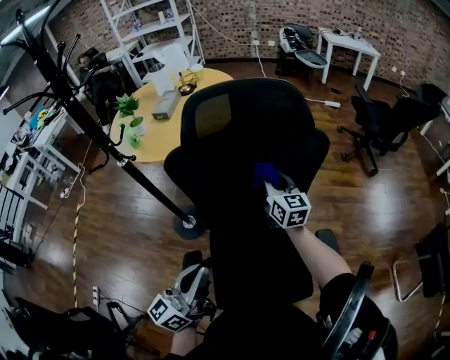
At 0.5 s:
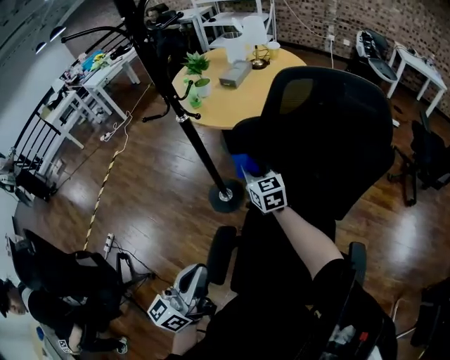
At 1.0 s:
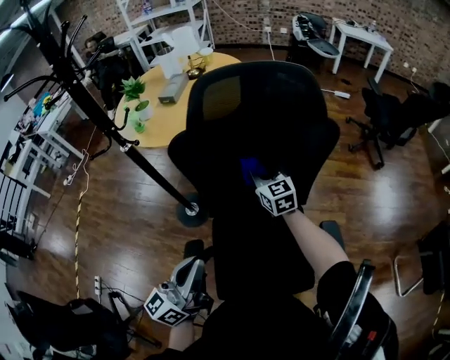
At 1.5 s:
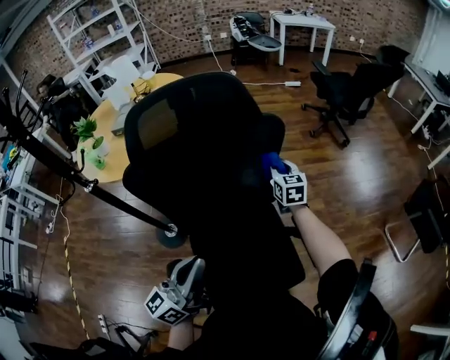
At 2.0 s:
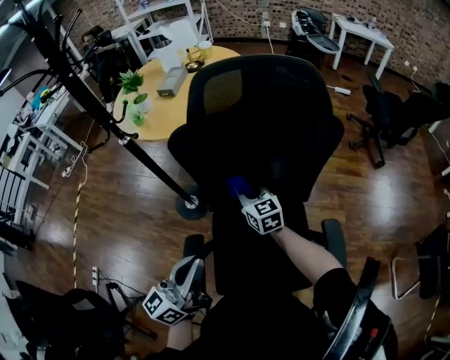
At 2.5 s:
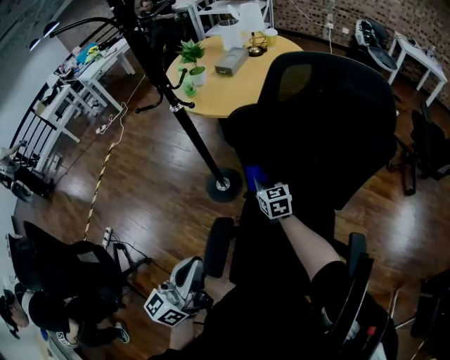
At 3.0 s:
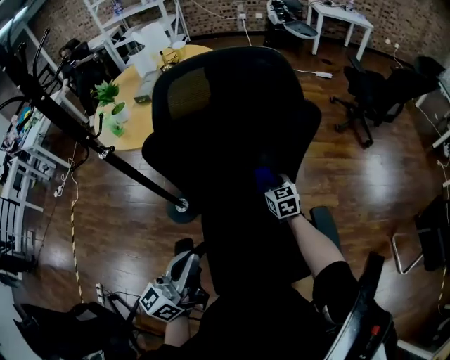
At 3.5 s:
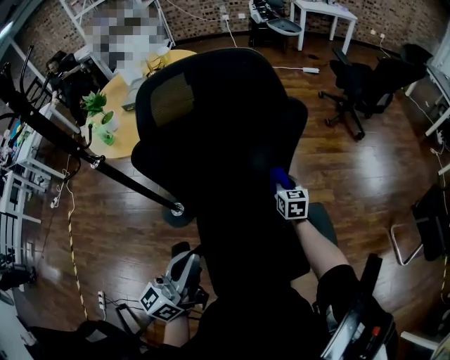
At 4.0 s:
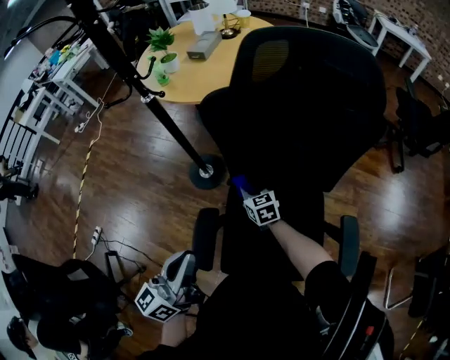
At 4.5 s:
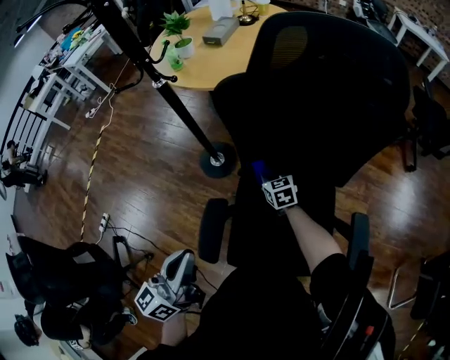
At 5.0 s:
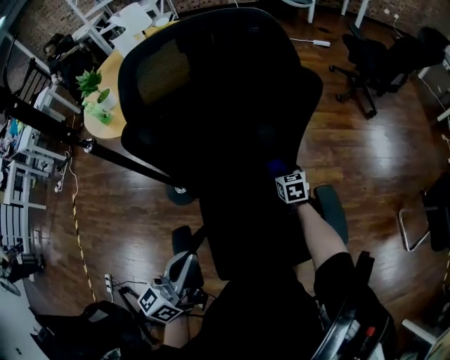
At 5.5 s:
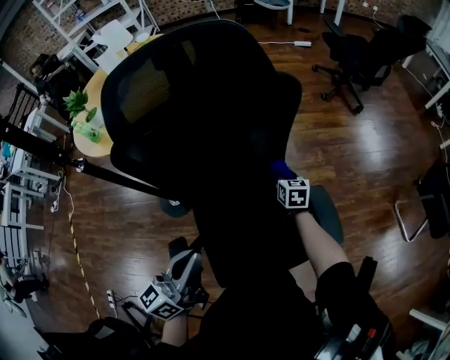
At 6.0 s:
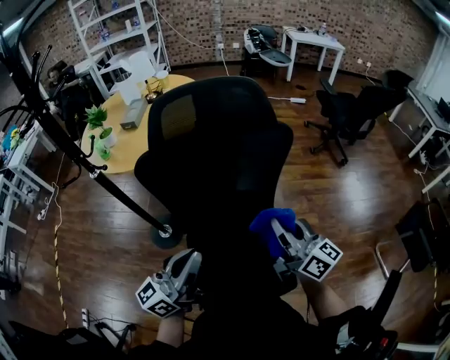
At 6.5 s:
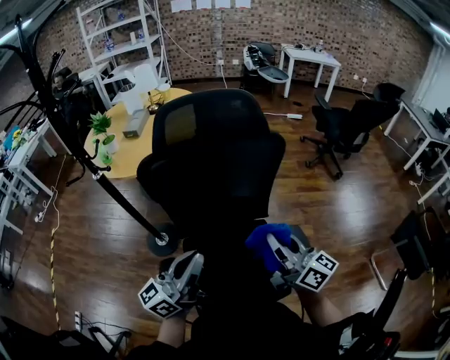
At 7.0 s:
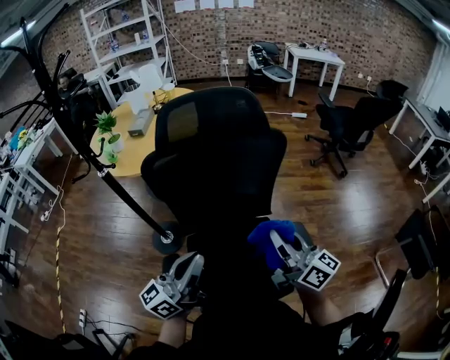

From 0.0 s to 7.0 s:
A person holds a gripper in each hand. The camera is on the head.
From 0.0 s to 2.0 s: The right gripper turns by some 20 degrees.
From 2.0 s to 3.5 s: The right gripper moves roughly 25 cm, and swivels about 30 degrees.
From 3.5 s to 5.0 s: The right gripper goes approximately 10 cm downward.
From 5.0 s to 7.0 s: The right gripper moves upward and backward, some 40 cm, and tips its fingers upward by about 60 degrees. The left gripper is displaced upward and to the right by approximately 10 cm, and rotates some 20 degrees.

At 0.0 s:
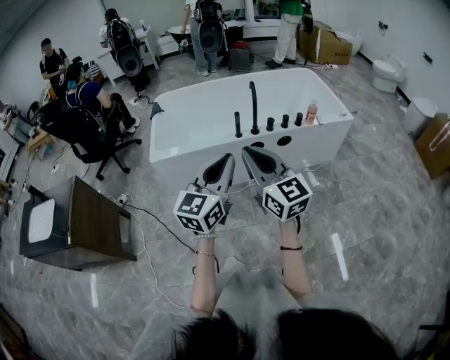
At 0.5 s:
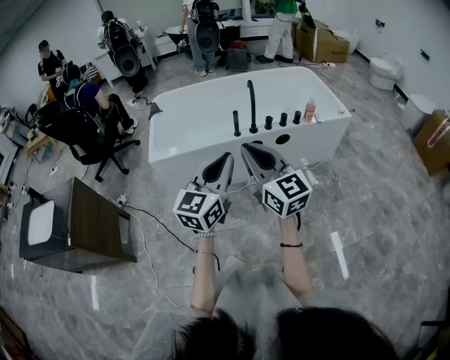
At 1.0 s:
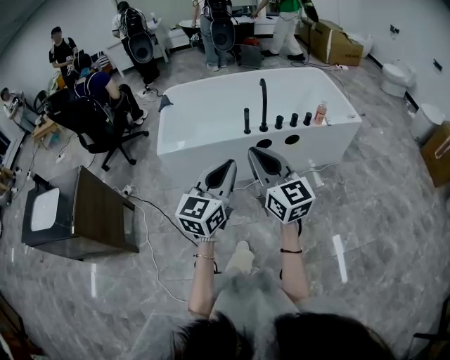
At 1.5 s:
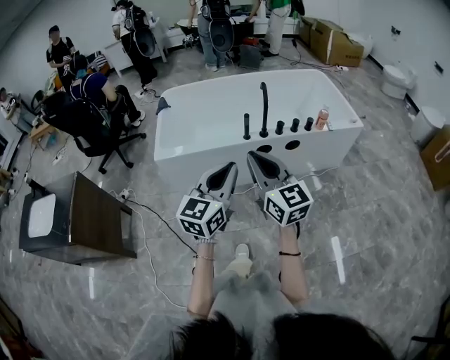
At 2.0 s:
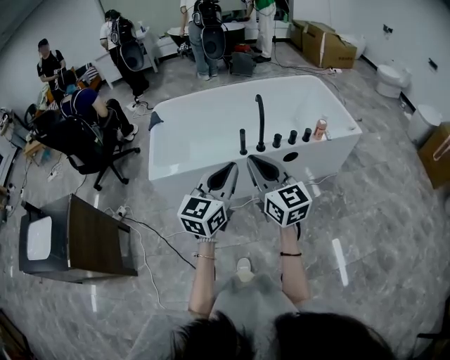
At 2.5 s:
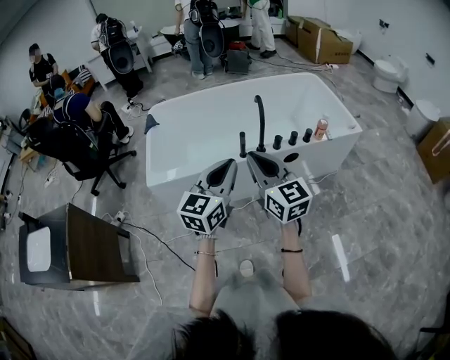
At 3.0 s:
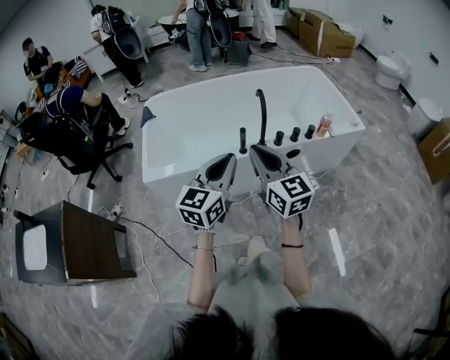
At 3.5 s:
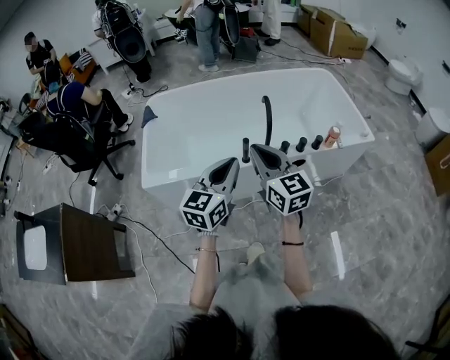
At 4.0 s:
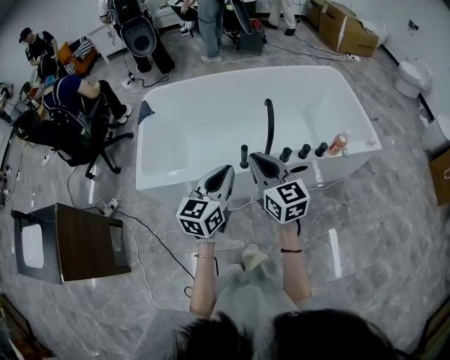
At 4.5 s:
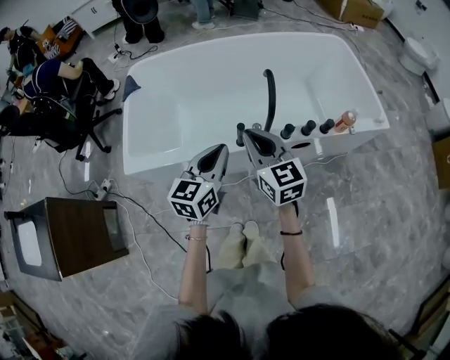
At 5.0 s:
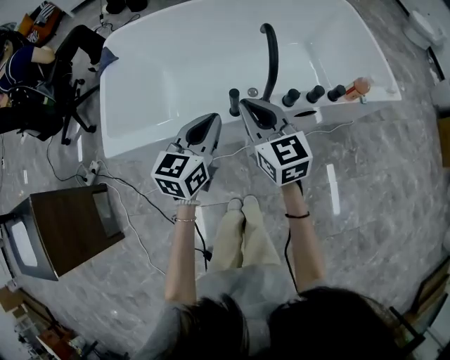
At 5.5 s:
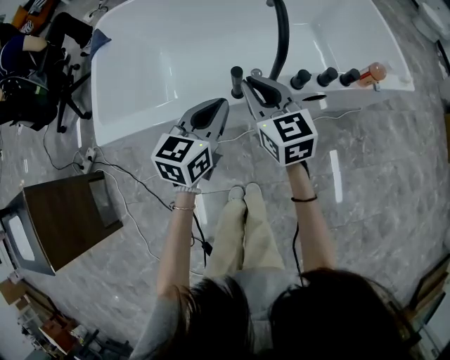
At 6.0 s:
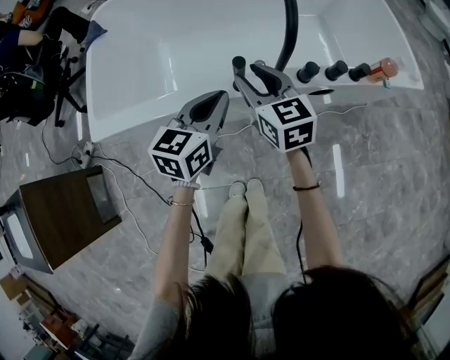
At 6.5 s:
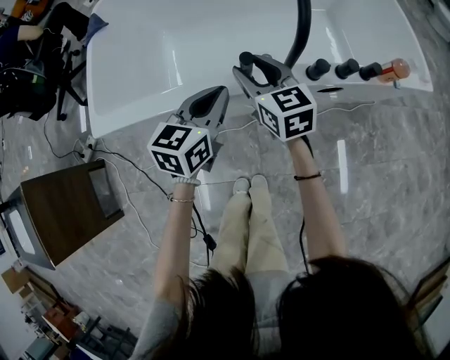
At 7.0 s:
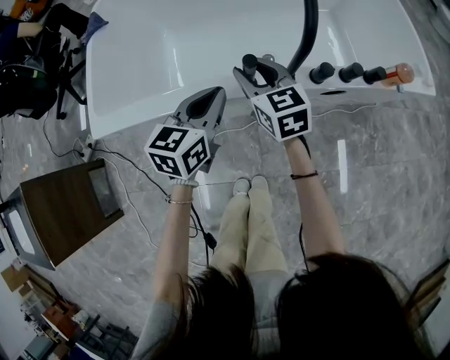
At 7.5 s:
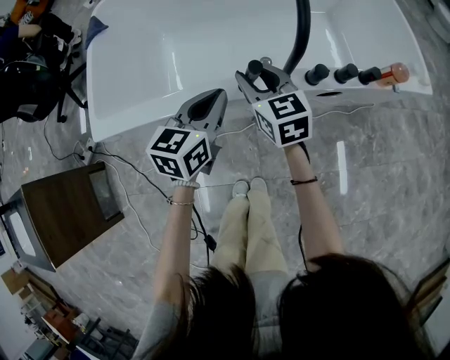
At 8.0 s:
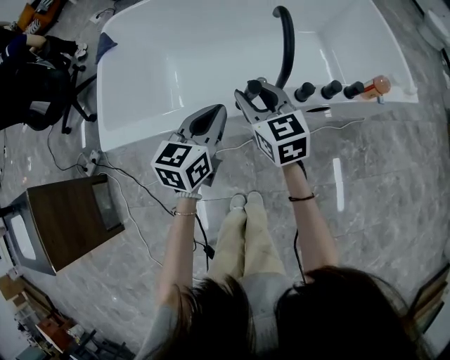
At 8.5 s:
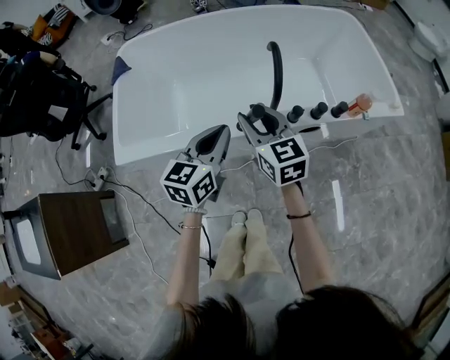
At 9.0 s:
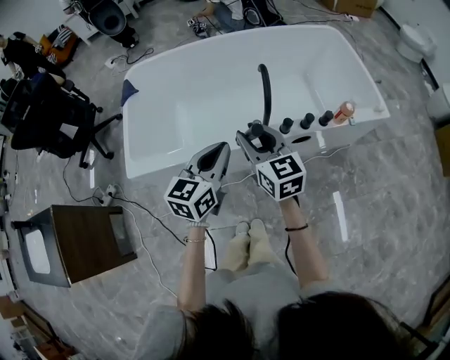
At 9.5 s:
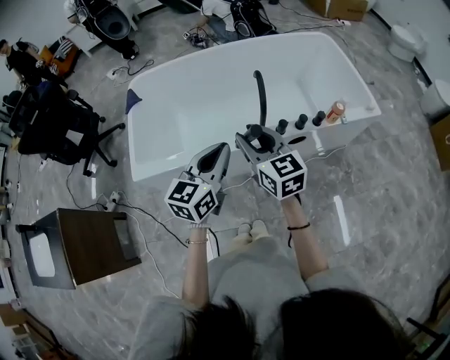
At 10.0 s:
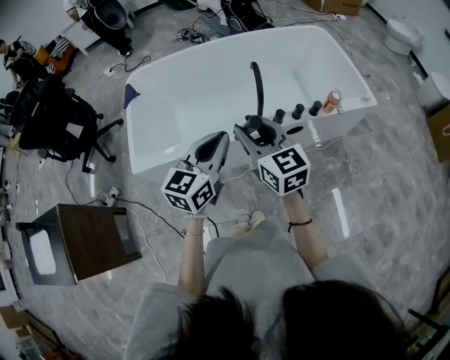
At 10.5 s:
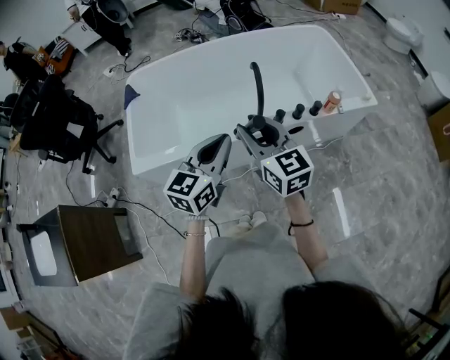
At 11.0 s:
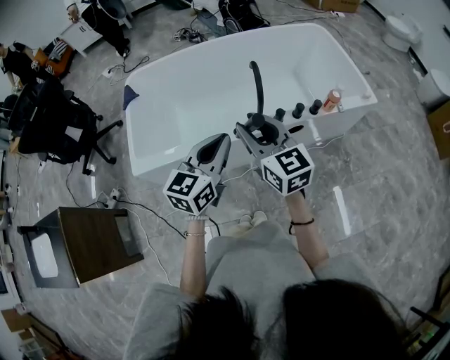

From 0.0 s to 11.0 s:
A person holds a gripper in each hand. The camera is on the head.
From 0.0 s to 2.0 s: The grippers both shift forward by approximately 15 cm.
From 2.0 s to 3.5 s: Both grippers move forward, about 15 cm.
From 3.5 s to 5.5 s: The two grippers go approximately 30 cm downward and forward.
From 5.5 s to 7.5 s: The right gripper travels downward by about 10 cm, and opens its fingers. The left gripper is displaced downward by about 5 cm.
From 7.5 s to 9.0 s: The right gripper goes approximately 25 cm upward and backward. The left gripper travels upward by some 20 cm.
From 9.0 s to 11.0 s: The grippers both shift upward and backward by some 10 cm.

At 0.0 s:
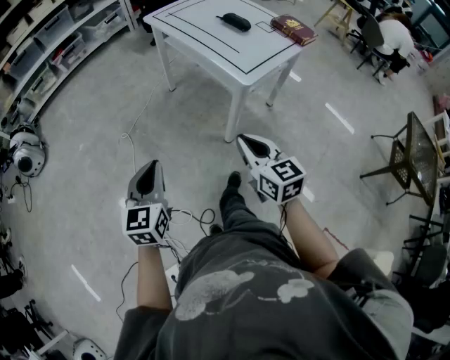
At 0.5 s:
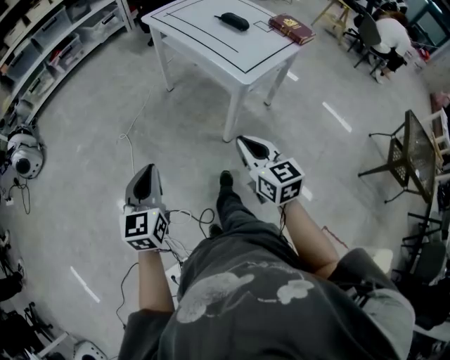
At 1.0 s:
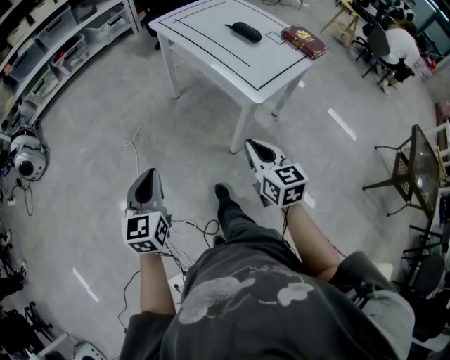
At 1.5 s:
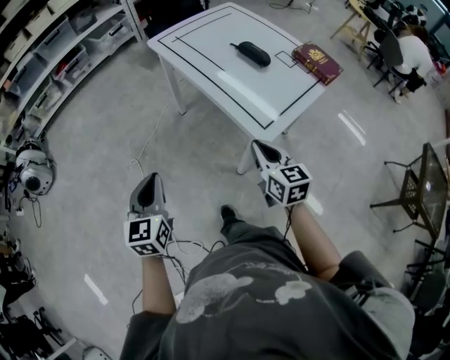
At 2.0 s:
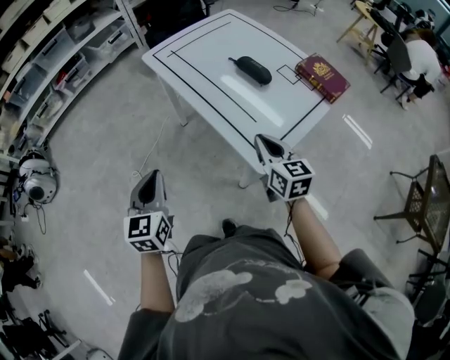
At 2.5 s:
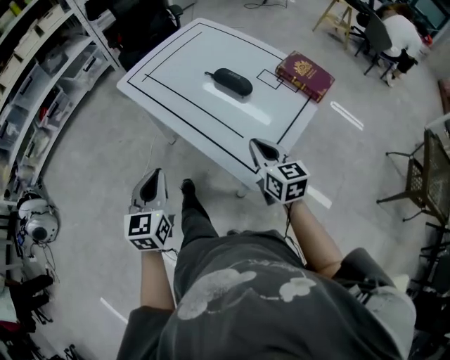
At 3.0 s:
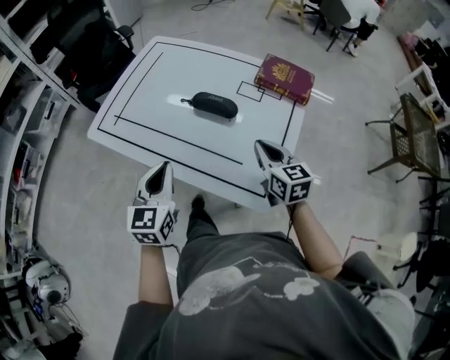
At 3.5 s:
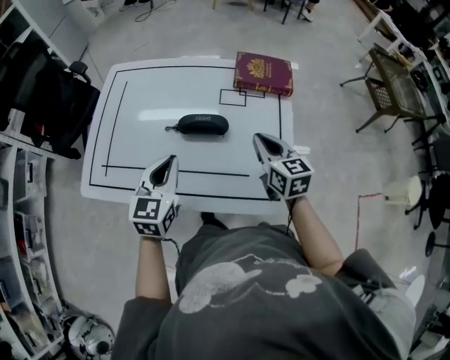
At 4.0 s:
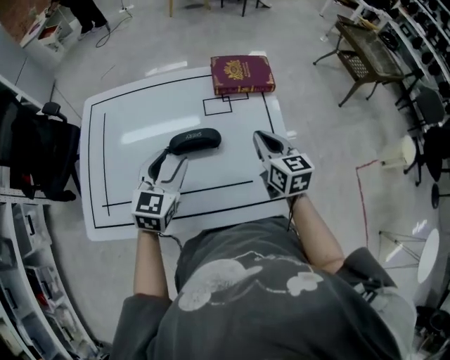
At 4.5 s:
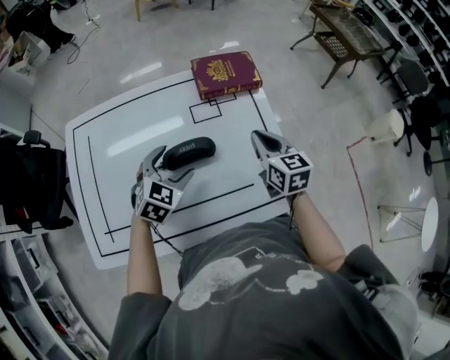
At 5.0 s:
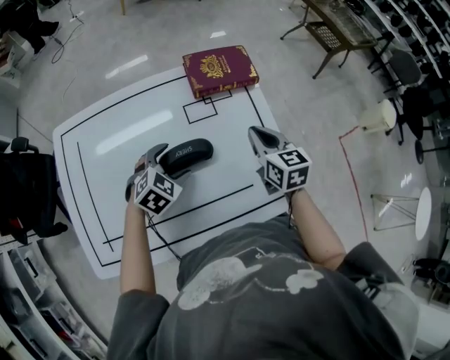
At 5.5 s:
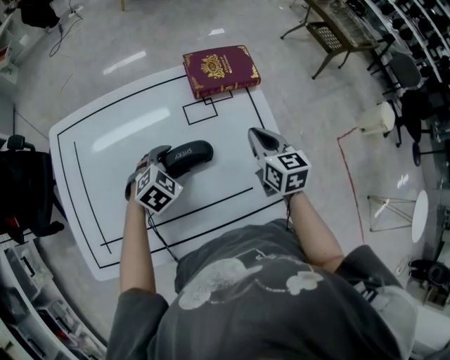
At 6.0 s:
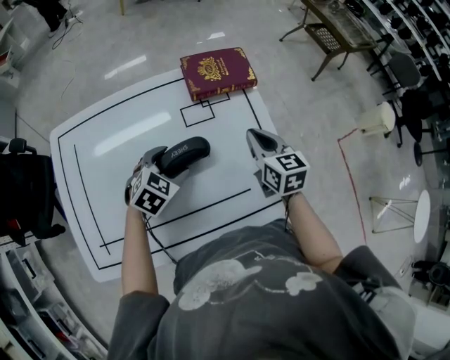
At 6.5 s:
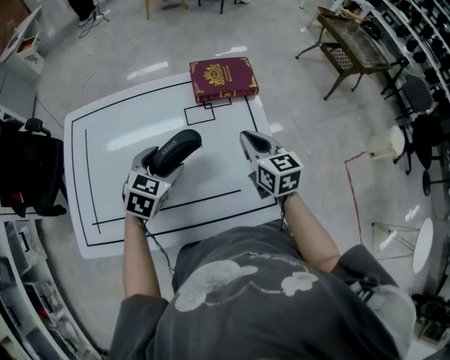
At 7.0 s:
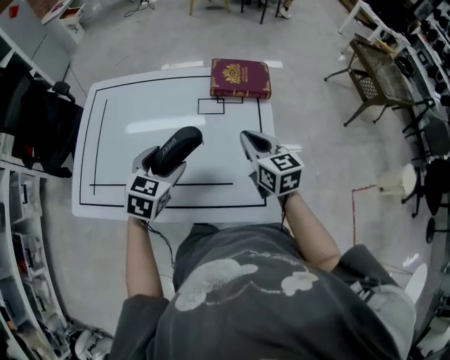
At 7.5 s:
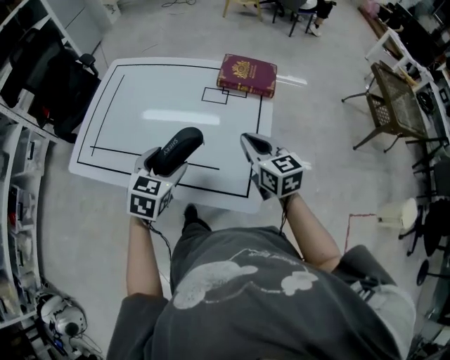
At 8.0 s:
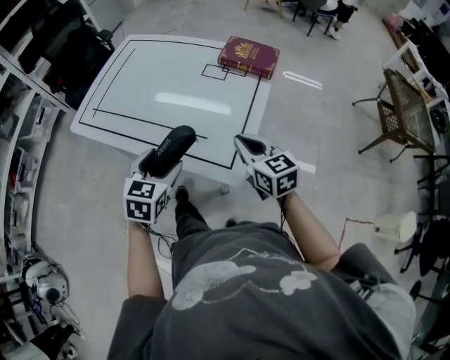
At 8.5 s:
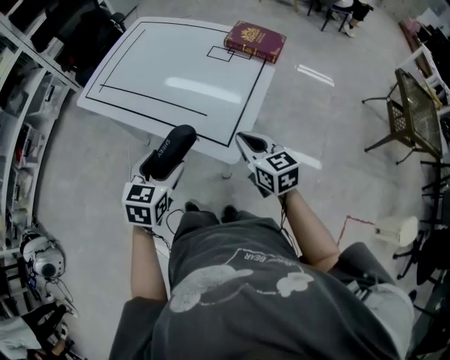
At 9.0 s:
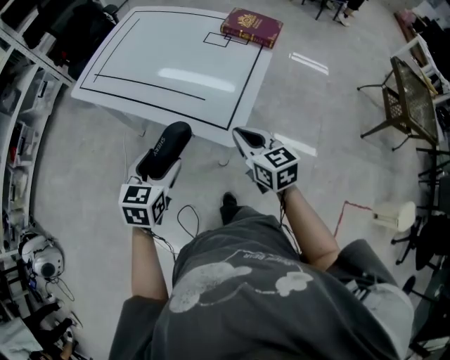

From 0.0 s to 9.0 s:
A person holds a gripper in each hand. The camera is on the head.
From 0.0 s to 2.0 s: Both grippers move forward, approximately 35 cm.
From 2.0 s to 4.5 s: The left gripper shifts by approximately 50 cm, rotates about 100 degrees, and opens, while the right gripper ends up roughly 25 cm from where it was, and rotates some 60 degrees.
From 4.5 s to 7.0 s: The left gripper ends up roughly 10 cm from where it was, and rotates about 30 degrees. The right gripper turns by some 20 degrees.
From 7.0 s to 9.0 s: The left gripper ends up about 30 cm from where it was, and rotates about 30 degrees, while the right gripper changes place by about 25 cm, and changes its angle by approximately 30 degrees.
